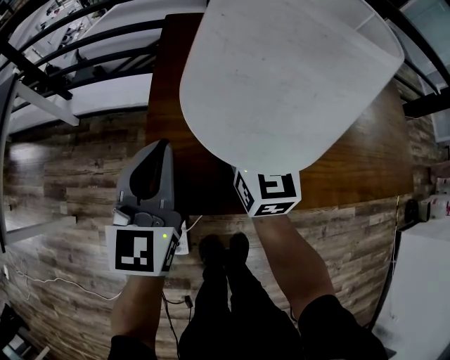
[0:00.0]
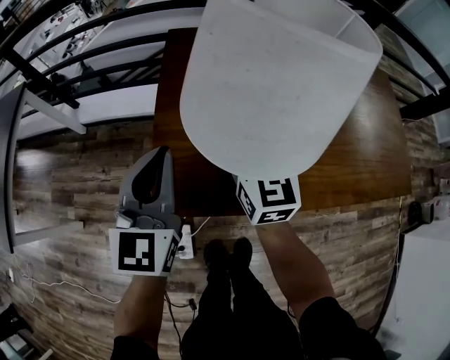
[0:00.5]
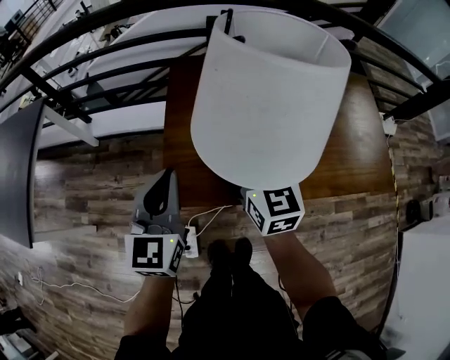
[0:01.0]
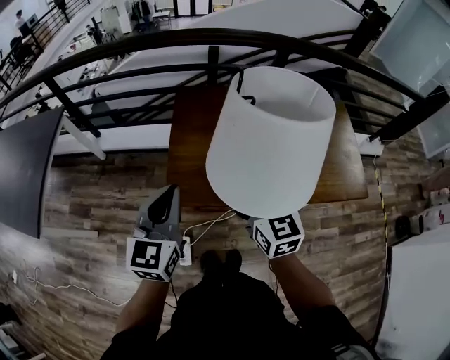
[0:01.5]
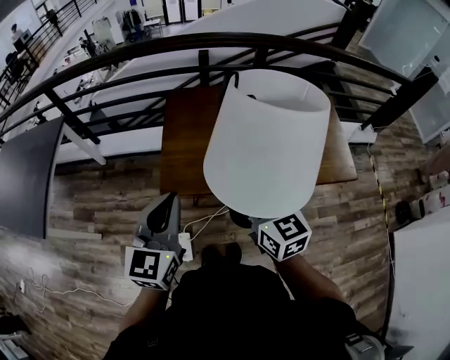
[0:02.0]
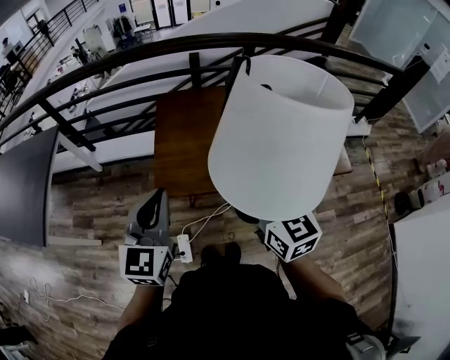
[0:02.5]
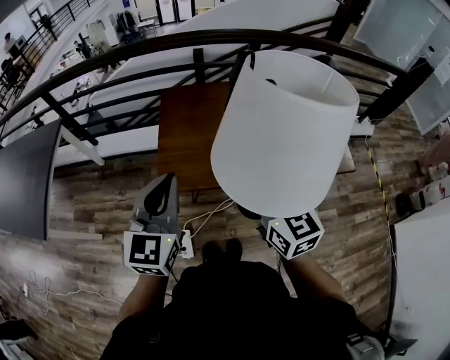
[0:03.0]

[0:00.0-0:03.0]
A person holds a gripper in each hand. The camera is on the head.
0:00.0 to 0:01.5: The two grippers go about 25 cm upward and backward.
0:01.5 to 0:03.0: The right gripper goes approximately 15 cm backward, upward and to the right; the left gripper shifts approximately 10 cm upward, backward and to the right.

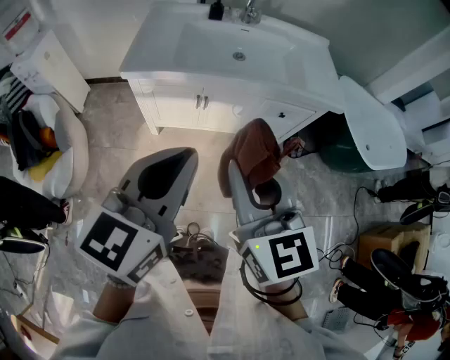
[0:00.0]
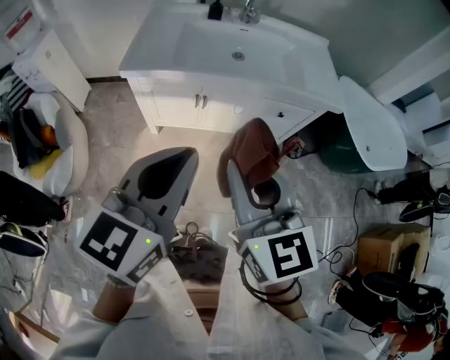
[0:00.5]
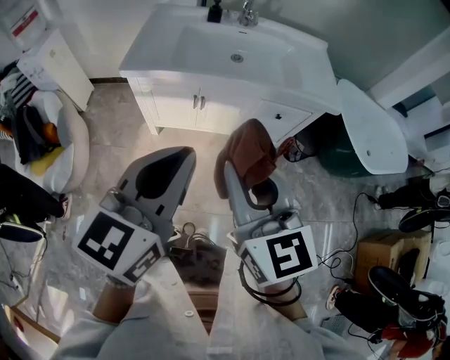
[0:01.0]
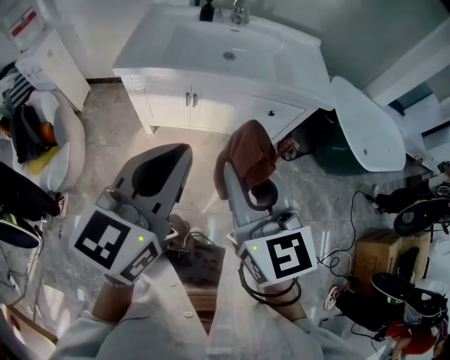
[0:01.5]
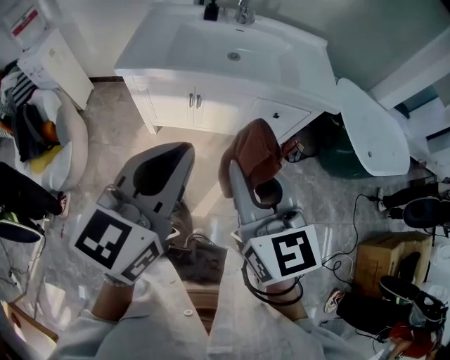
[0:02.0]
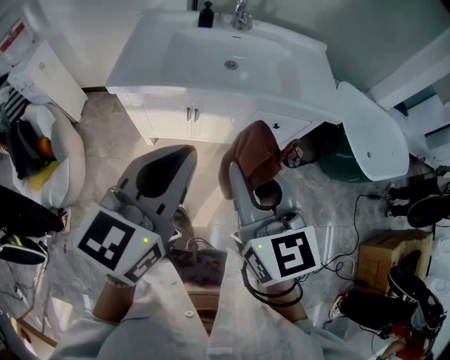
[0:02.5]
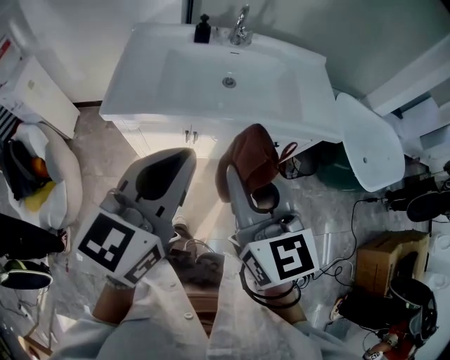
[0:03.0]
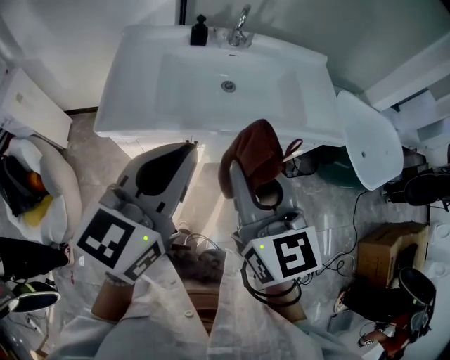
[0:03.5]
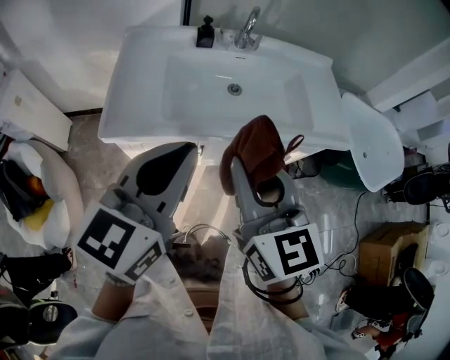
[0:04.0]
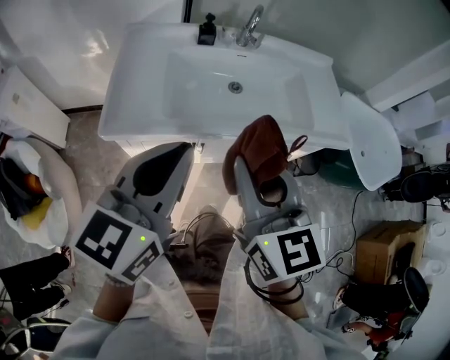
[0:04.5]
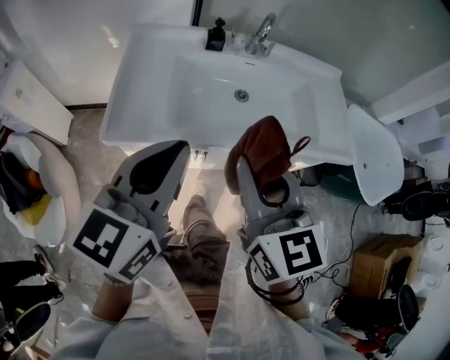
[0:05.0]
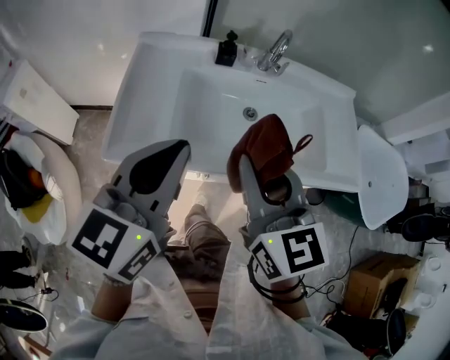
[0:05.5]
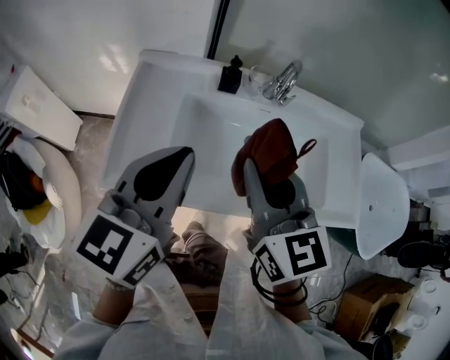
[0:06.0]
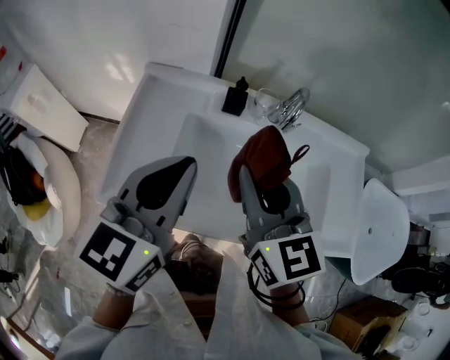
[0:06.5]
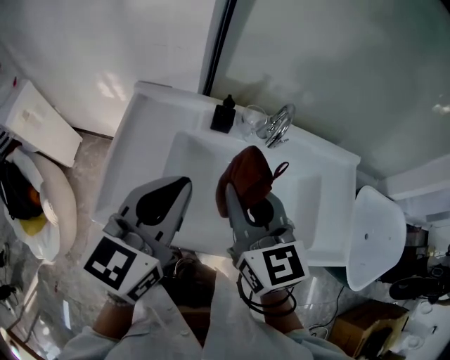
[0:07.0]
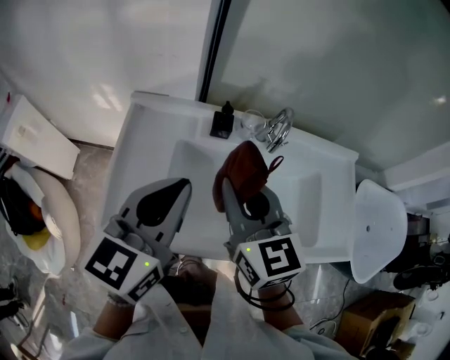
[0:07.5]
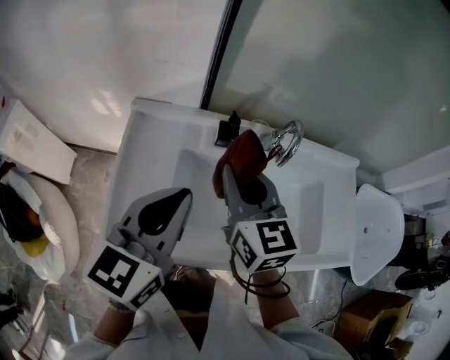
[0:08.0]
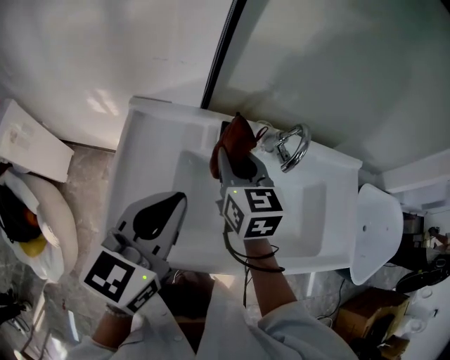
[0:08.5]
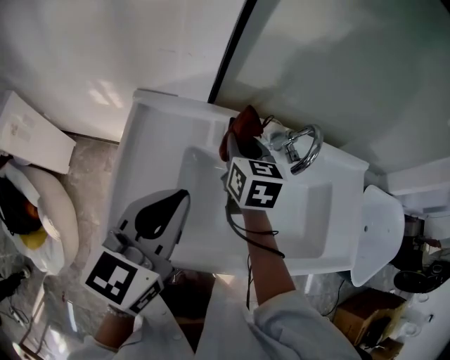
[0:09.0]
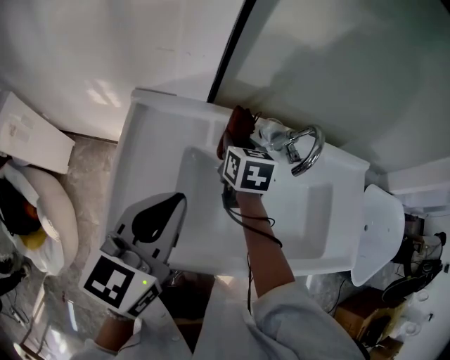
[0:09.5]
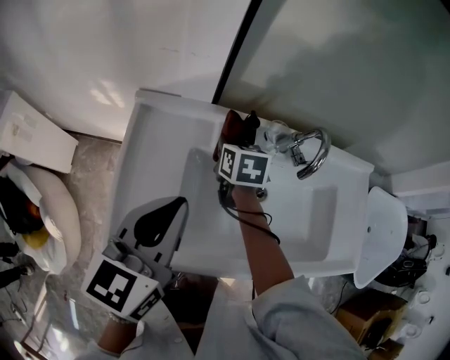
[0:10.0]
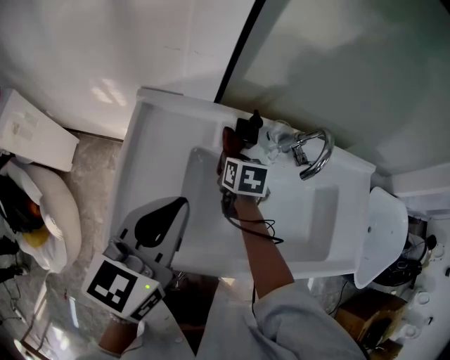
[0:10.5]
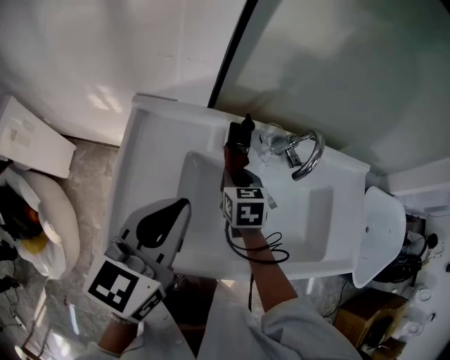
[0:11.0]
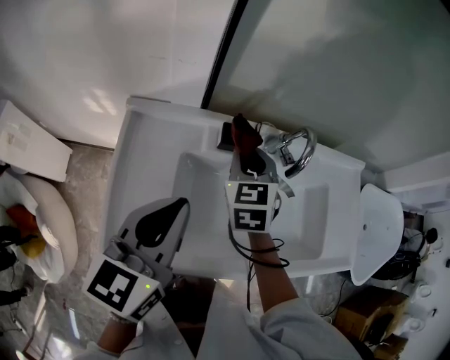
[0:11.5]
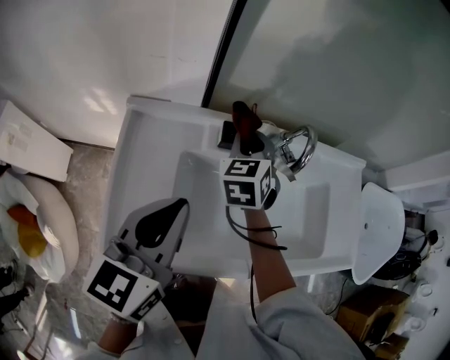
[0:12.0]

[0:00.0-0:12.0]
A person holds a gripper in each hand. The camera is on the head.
0:00.0 to 0:02.0: Both grippers travel together to the right, roughly 10 cm.
0:02.0 to 0:04.0: Both grippers move forward and to the left, about 30 cm.
0:04.0 to 0:06.0: The grippers both shift forward by roughly 25 cm.
0:06.0 to 0:08.0: The left gripper goes some 10 cm forward, while the right gripper heads forward, covering about 15 cm.
0:08.0 to 0:10.0: The right gripper shifts approximately 25 cm downward and forward, and tilts its fingers approximately 30 degrees downward, while the left gripper ends up some 5 cm from where it was.
0:10.0 to 0:12.0: The right gripper heads upward, covering some 10 cm, and turns by roughly 40 degrees.

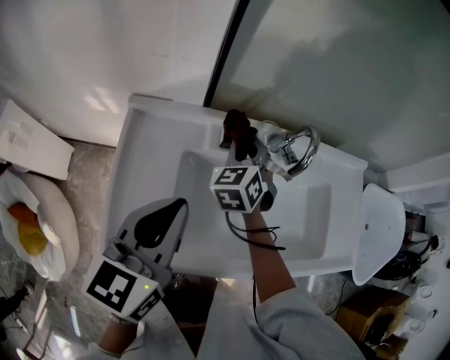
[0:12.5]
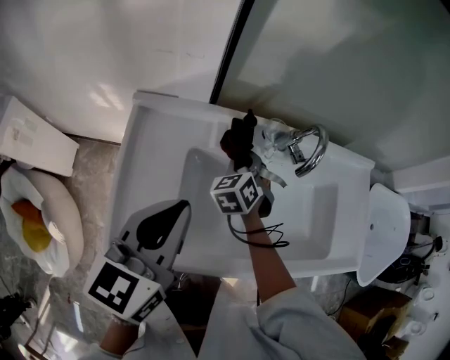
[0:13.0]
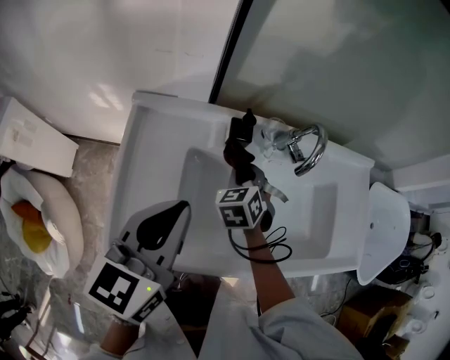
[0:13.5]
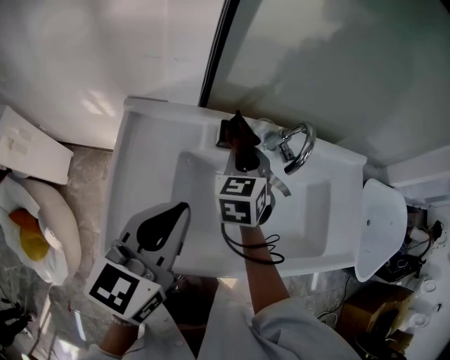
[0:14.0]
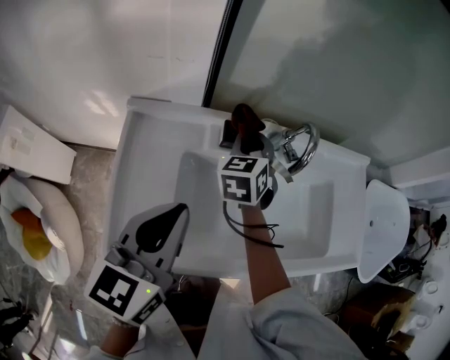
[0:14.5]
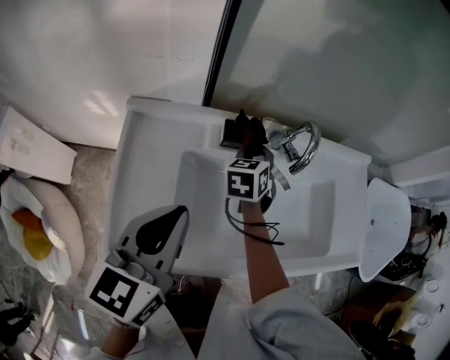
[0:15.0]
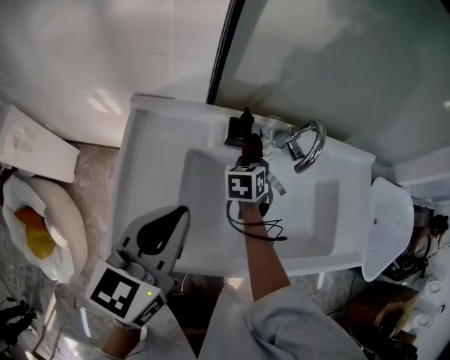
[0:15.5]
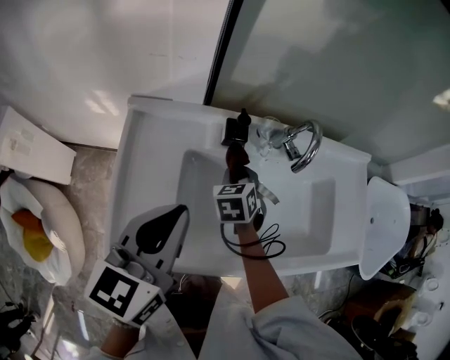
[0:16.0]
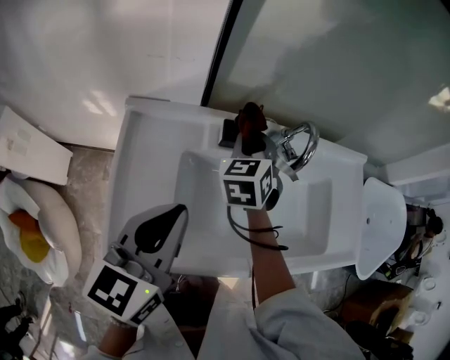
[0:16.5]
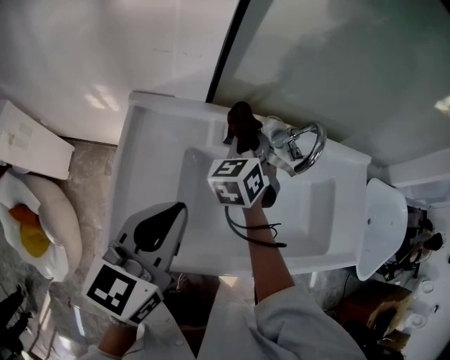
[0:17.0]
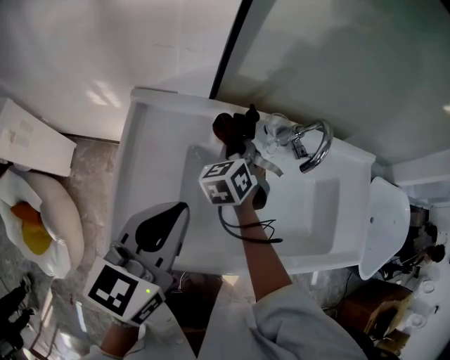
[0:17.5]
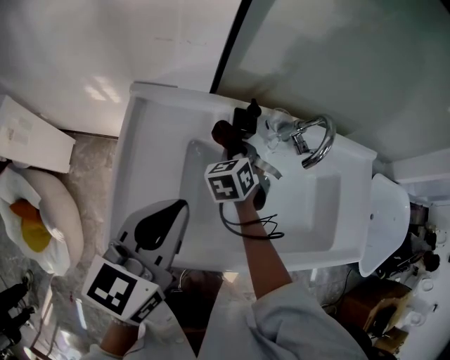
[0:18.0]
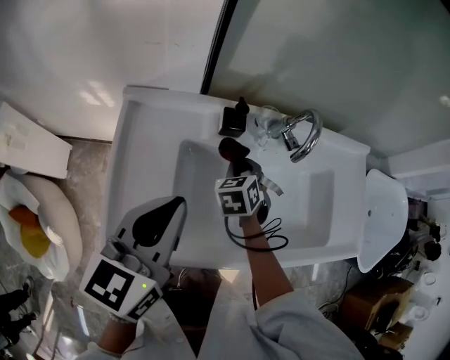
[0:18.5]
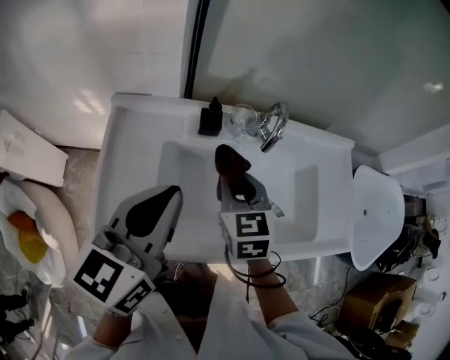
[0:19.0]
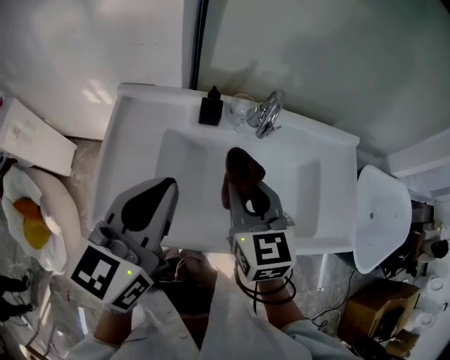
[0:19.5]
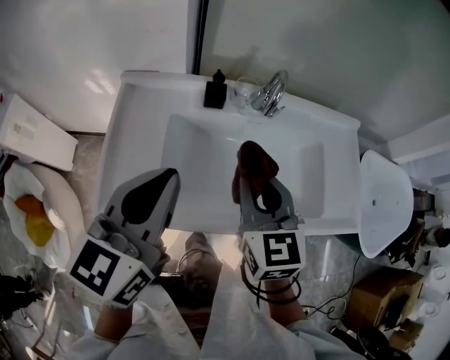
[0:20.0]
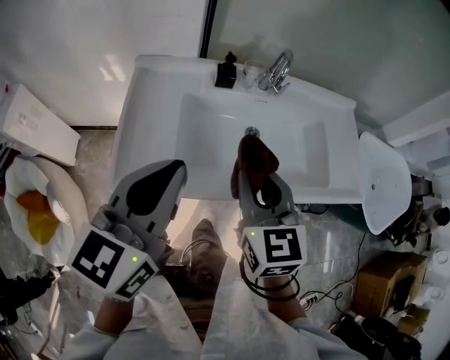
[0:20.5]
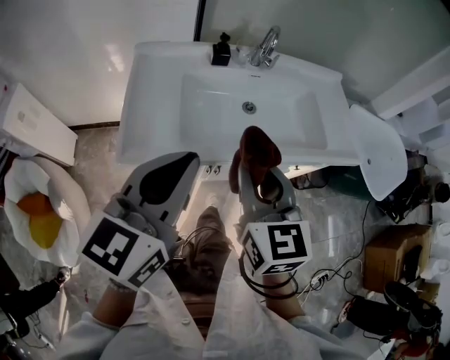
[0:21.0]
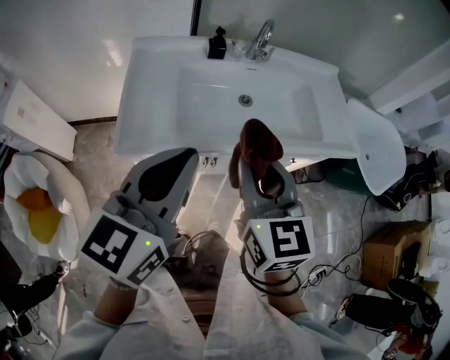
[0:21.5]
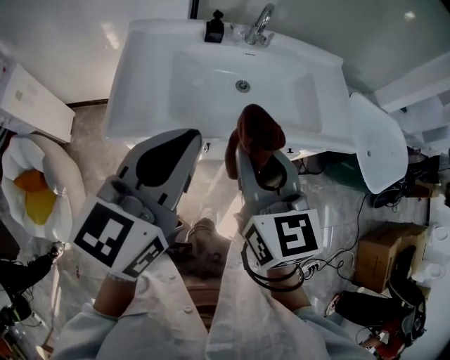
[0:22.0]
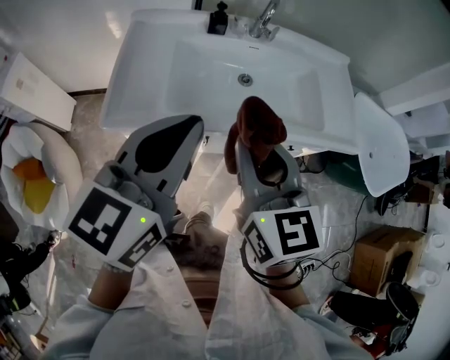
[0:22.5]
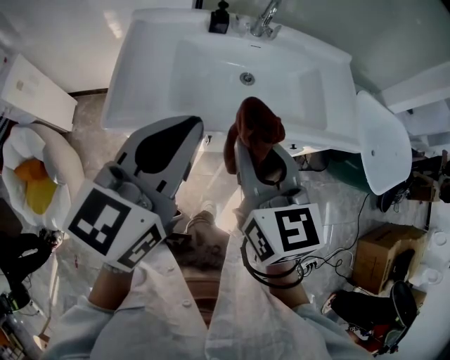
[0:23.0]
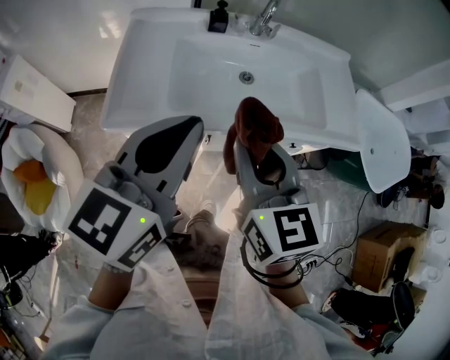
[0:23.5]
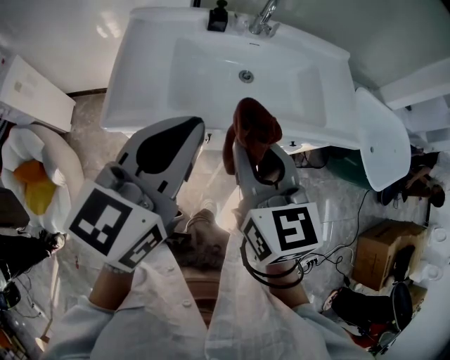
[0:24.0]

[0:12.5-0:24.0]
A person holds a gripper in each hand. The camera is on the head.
0:12.5 to 0:14.5: The right gripper travels downward and back again, roughly 10 cm each way.
0:14.5 to 0:16.5: The right gripper reaches approximately 15 cm downward, then returns.
0:16.5 to 0:18.5: The right gripper travels downward and backward by some 15 cm.
0:18.5 to 0:20.0: The left gripper shifts roughly 10 cm backward, to the right and upward, while the right gripper travels upward and backward by about 25 cm, and tilts its fingers some 30 degrees upward.
0:20.0 to 0:22.0: The two grippers go some 25 cm backward.
0:22.0 to 0:24.0: The grippers make only small movements.
